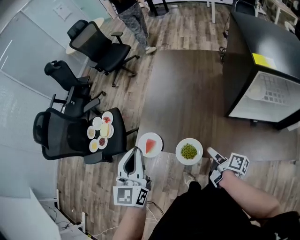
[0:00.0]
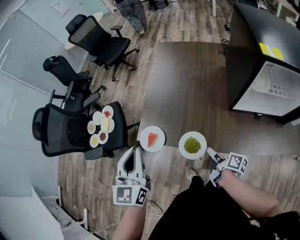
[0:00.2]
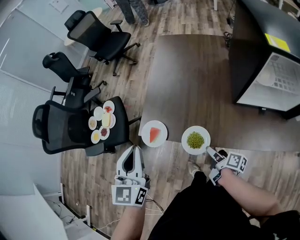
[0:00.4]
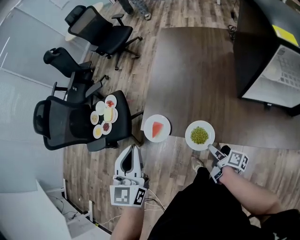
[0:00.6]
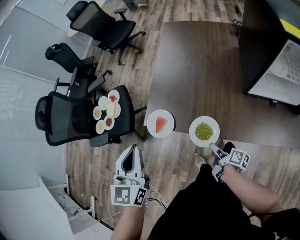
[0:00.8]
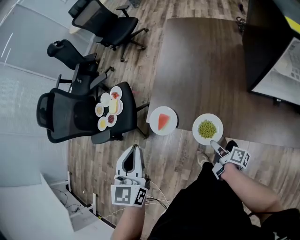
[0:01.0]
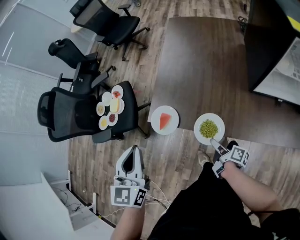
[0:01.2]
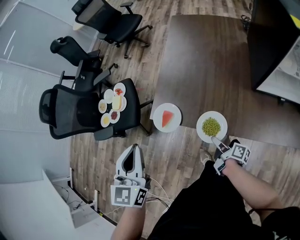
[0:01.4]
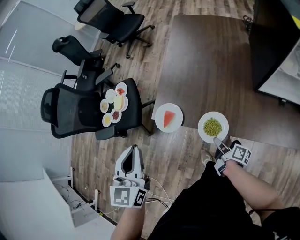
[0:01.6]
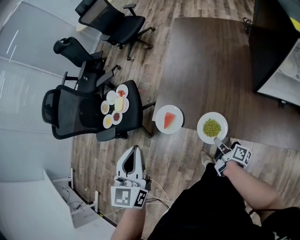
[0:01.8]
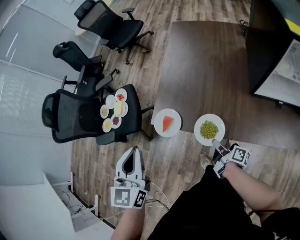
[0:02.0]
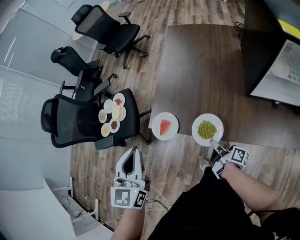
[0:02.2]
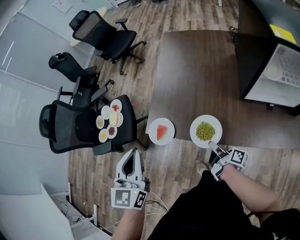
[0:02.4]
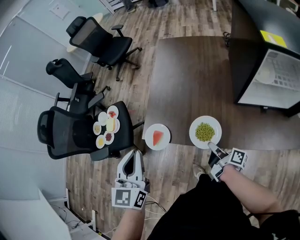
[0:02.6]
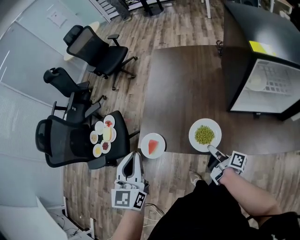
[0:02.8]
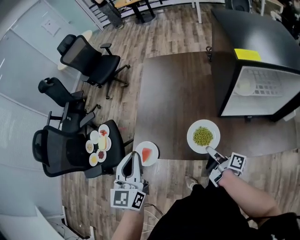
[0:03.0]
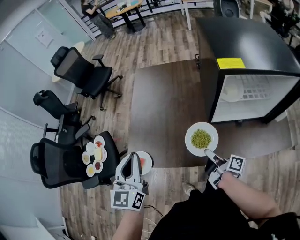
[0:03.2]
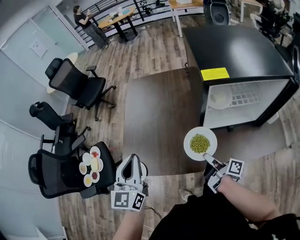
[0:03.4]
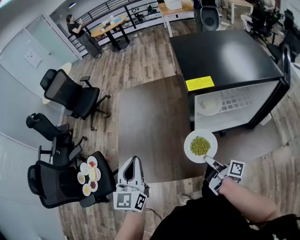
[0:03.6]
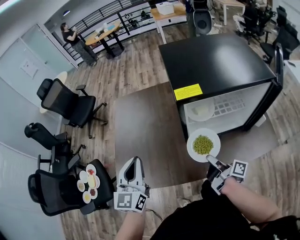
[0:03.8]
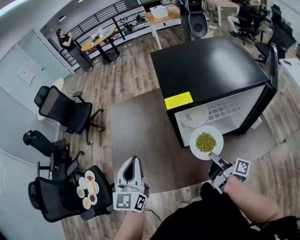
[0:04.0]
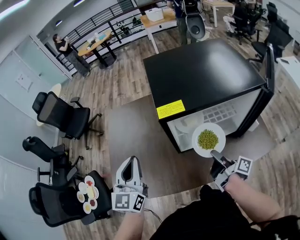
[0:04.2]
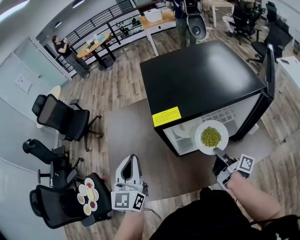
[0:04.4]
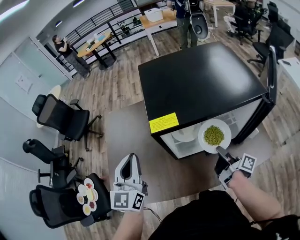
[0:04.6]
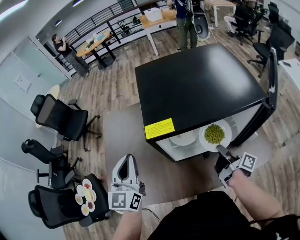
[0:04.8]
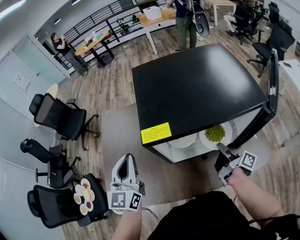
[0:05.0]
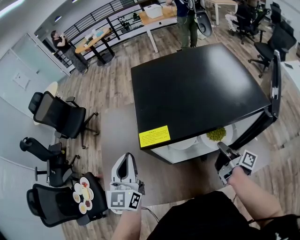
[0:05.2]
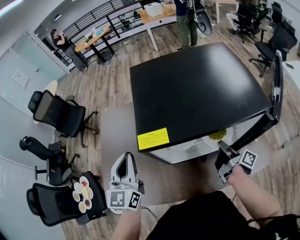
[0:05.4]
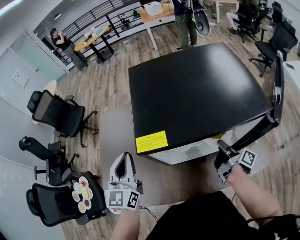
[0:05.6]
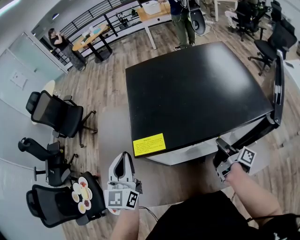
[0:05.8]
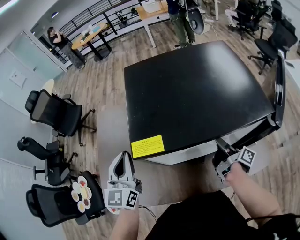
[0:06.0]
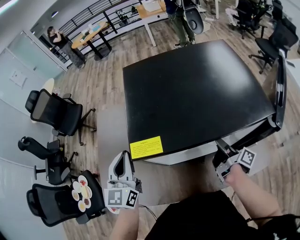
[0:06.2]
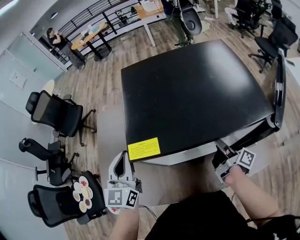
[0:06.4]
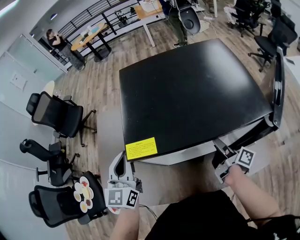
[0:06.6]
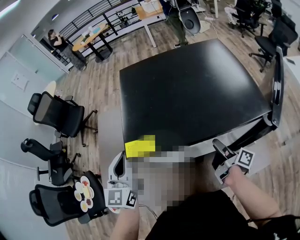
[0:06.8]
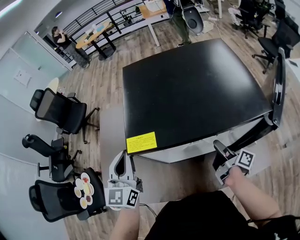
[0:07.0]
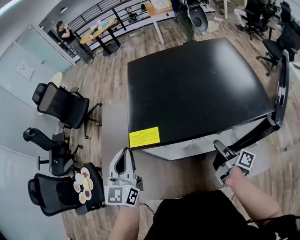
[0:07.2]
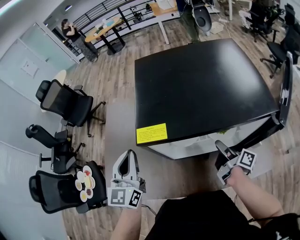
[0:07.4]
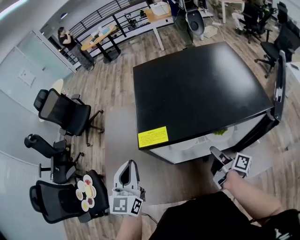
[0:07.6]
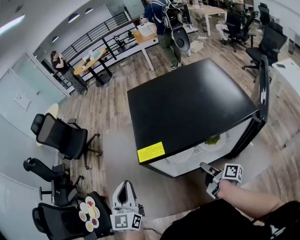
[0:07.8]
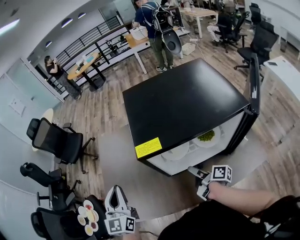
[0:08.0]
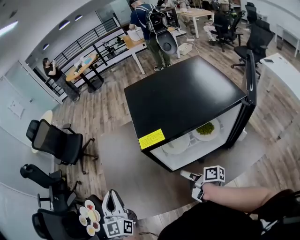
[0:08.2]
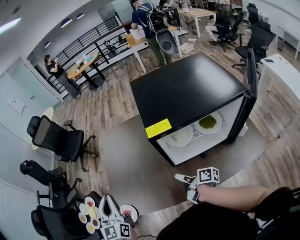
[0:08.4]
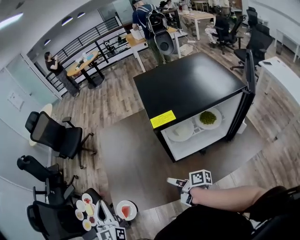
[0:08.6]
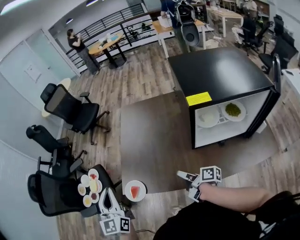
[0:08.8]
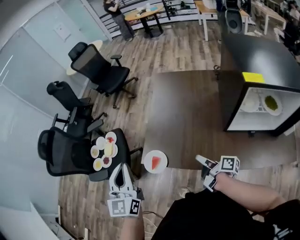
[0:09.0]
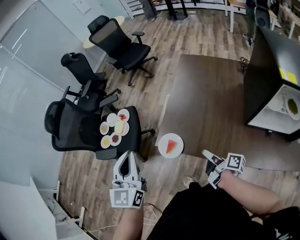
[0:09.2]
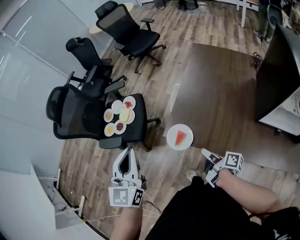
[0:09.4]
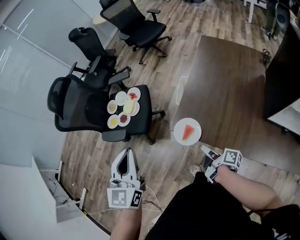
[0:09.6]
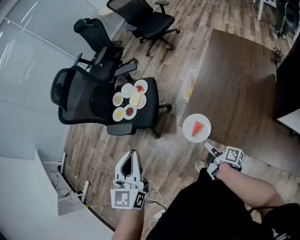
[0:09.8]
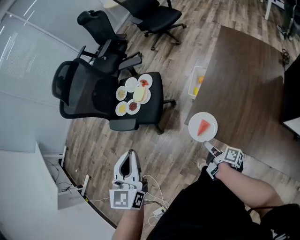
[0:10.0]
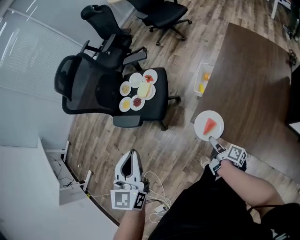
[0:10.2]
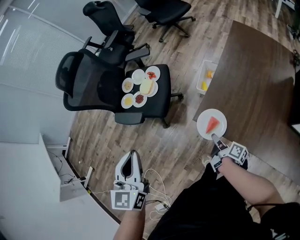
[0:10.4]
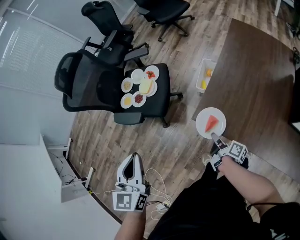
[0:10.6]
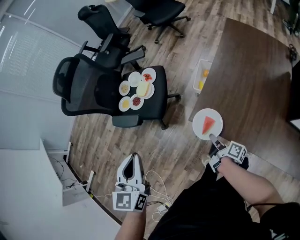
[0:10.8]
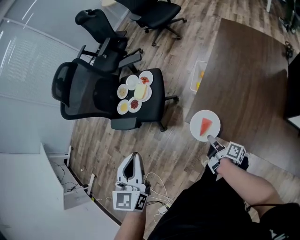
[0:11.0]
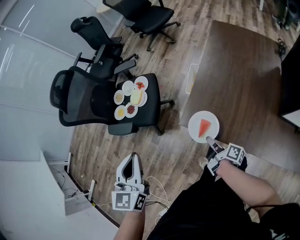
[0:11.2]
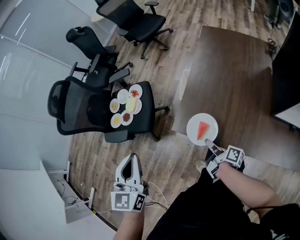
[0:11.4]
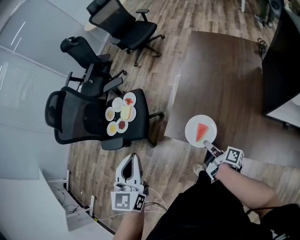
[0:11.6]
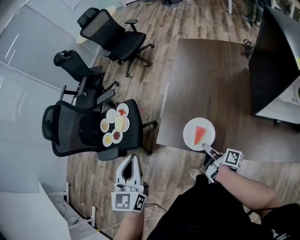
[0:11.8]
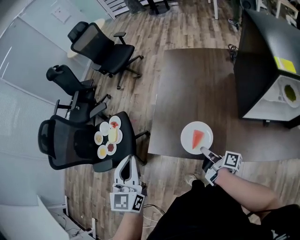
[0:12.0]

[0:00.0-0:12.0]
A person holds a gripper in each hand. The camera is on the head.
0:00.0 to 0:01.6: The left gripper changes place by approximately 10 cm.
0:01.6 to 0:03.0: The left gripper shifts by approximately 15 cm.
0:03.0 to 0:04.4: The left gripper moves about 30 cm, and changes its angle by roughly 20 degrees.
0:04.4 to 0:06.0: The left gripper changes place by about 10 cm.
0:07.6 to 0:09.0: The left gripper moves approximately 50 cm, and turns by some 30 degrees.
0:09.0 to 0:10.4: The left gripper moves roughly 25 cm, and turns by about 30 degrees.
0:10.4 to 0:12.0: The left gripper changes place by roughly 25 cm, and rotates some 20 degrees.

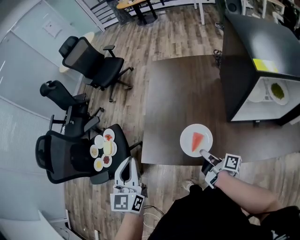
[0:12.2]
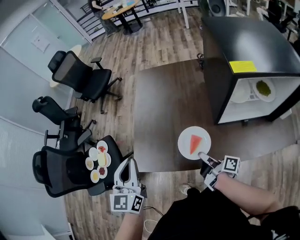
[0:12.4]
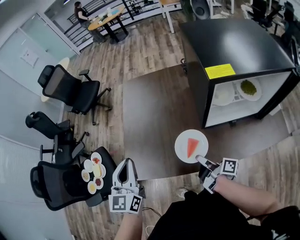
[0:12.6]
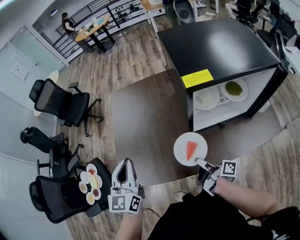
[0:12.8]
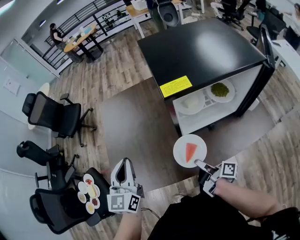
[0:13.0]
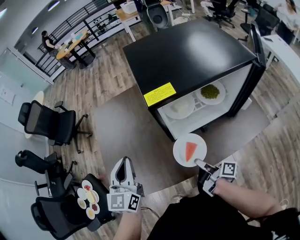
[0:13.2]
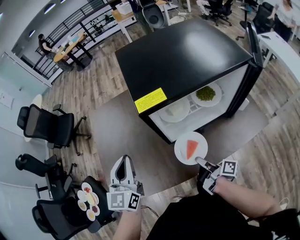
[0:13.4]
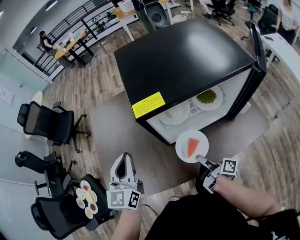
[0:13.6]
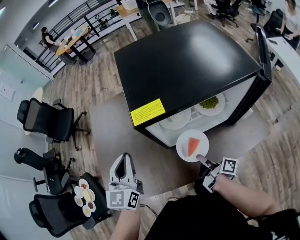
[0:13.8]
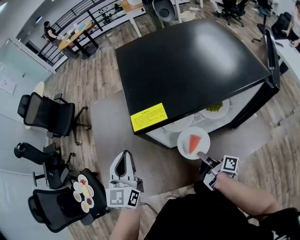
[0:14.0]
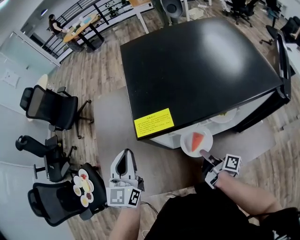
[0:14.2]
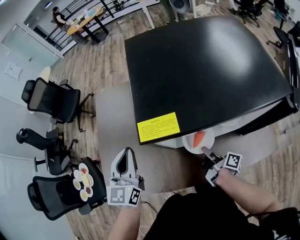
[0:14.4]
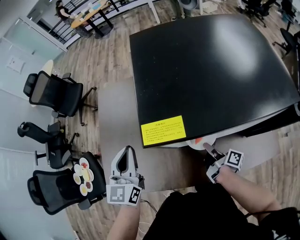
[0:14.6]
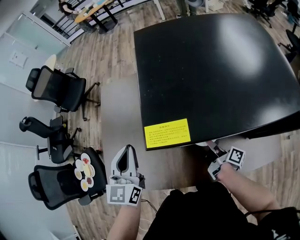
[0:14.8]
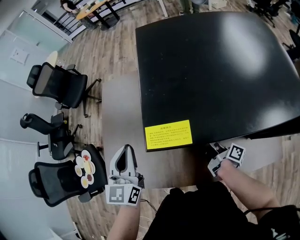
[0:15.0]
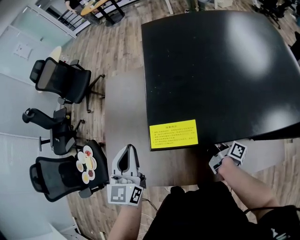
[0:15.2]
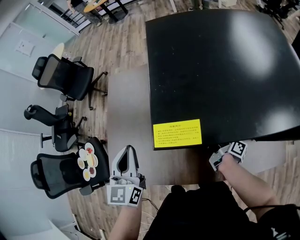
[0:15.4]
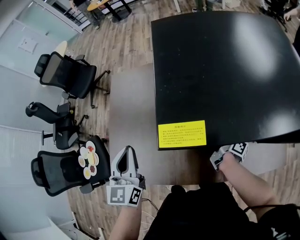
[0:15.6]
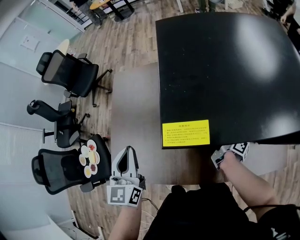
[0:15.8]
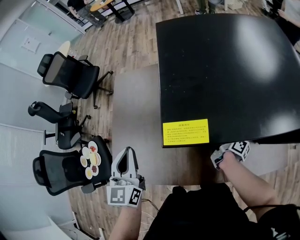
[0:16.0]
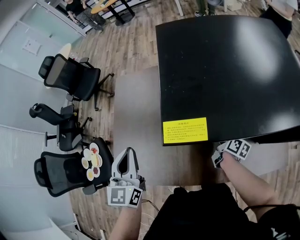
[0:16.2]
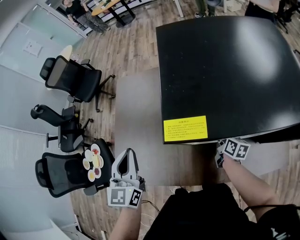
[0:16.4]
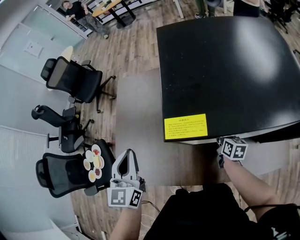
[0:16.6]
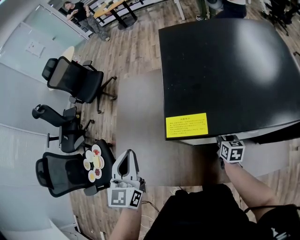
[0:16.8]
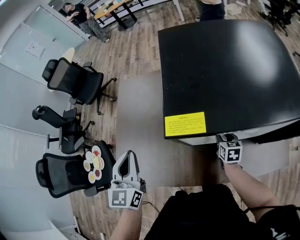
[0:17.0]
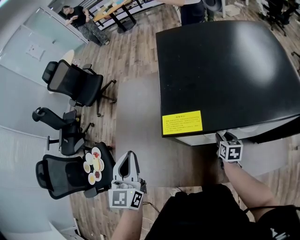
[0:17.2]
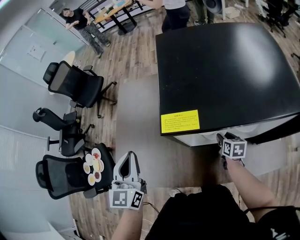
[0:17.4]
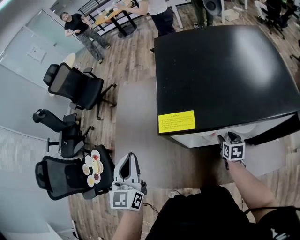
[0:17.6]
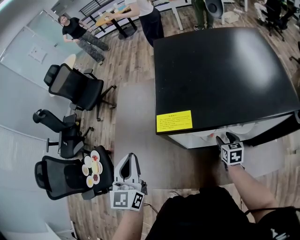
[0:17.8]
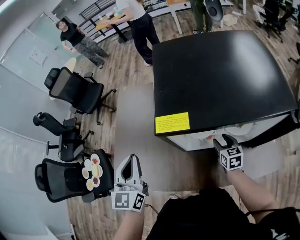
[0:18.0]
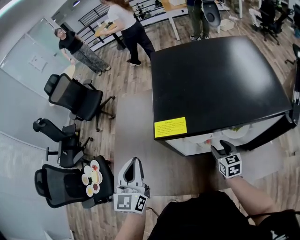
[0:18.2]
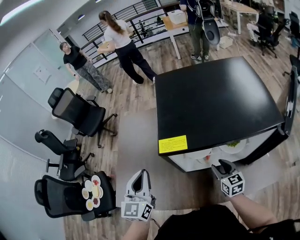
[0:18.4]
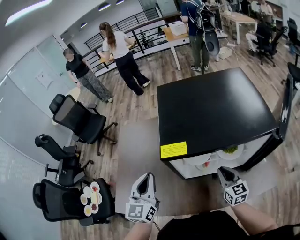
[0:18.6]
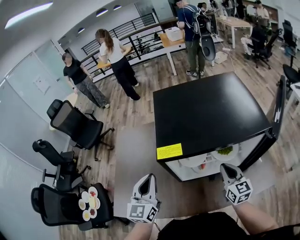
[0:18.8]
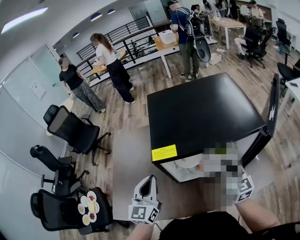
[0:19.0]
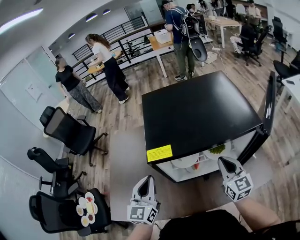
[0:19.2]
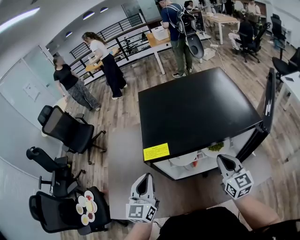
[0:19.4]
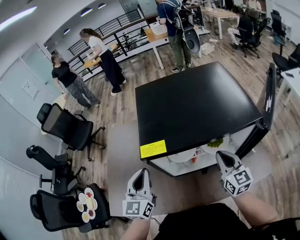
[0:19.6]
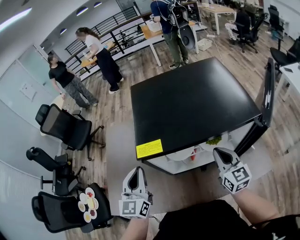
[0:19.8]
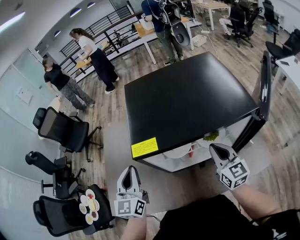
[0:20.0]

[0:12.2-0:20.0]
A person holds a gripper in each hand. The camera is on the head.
0:12.2 to 0:13.8: The left gripper moves approximately 40 cm, and rotates roughly 20 degrees.
0:13.8 to 0:15.4: The left gripper ends up some 5 cm from where it was.
0:16.8 to 0:18.4: The left gripper ends up some 5 cm from where it was.
0:18.4 to 0:20.0: The left gripper moves some 5 cm.

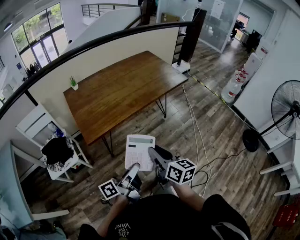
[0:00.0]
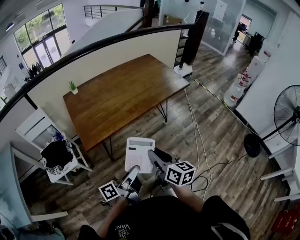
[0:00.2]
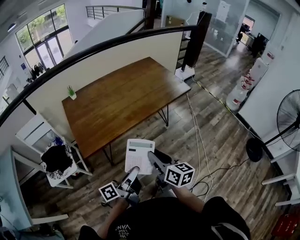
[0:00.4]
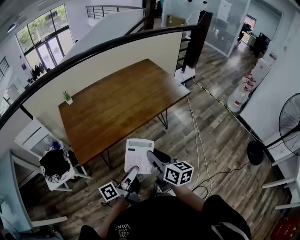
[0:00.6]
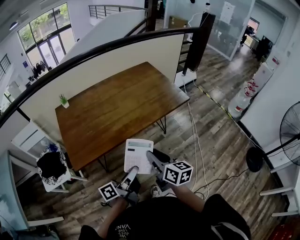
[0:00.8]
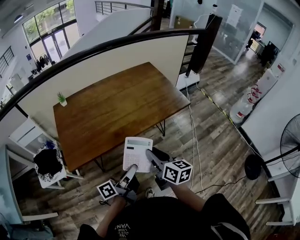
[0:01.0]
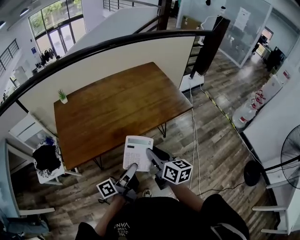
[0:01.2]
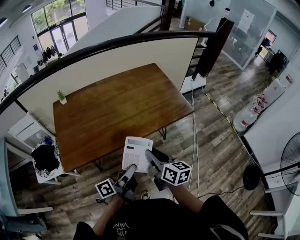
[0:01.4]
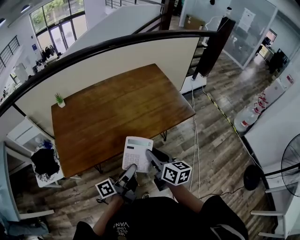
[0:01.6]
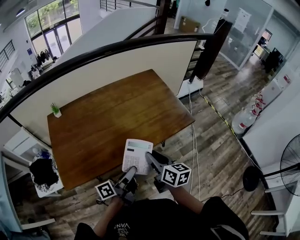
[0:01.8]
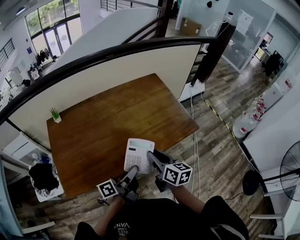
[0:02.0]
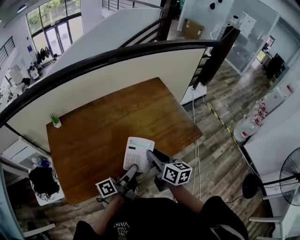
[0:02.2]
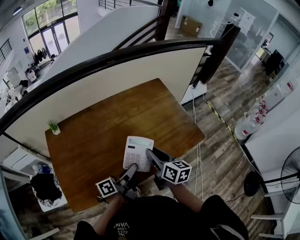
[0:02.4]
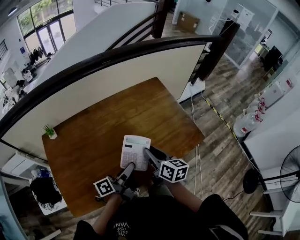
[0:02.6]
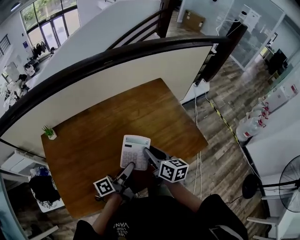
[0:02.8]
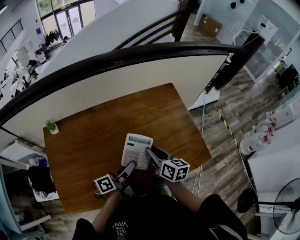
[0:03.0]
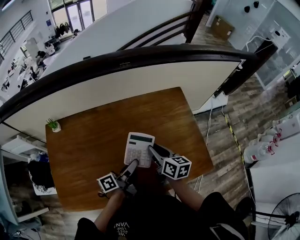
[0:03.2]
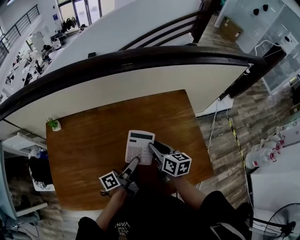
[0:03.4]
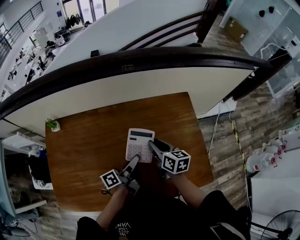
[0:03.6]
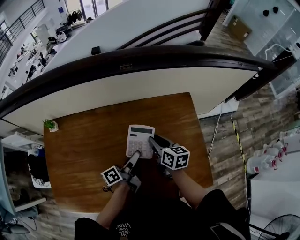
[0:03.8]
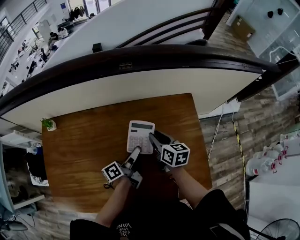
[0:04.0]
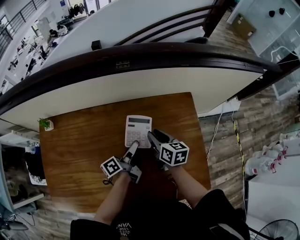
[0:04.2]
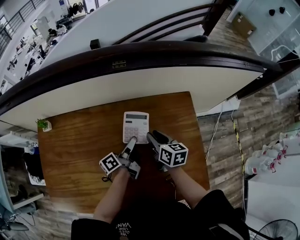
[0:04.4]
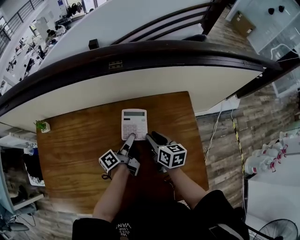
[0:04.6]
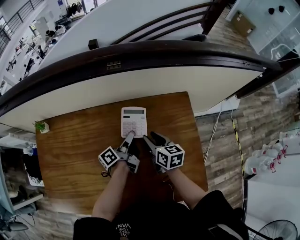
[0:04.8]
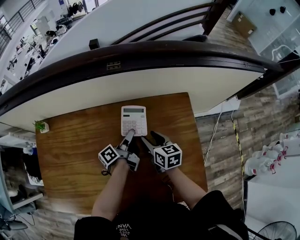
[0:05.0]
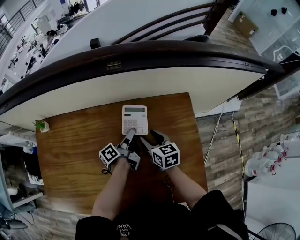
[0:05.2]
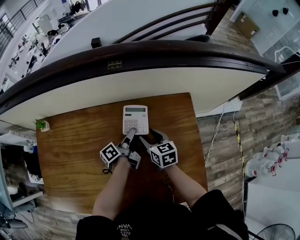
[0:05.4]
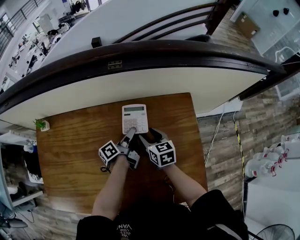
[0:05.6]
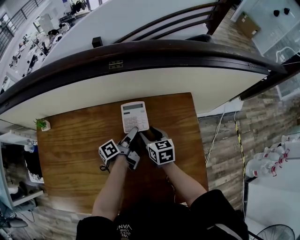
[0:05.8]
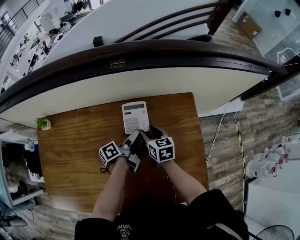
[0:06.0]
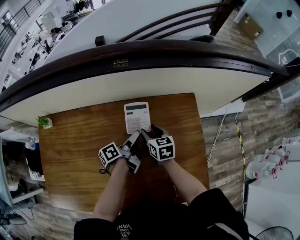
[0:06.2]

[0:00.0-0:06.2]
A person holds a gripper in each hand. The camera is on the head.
0:00.0 to 0:01.6: Both grippers move forward and to the right, about 35 cm.
0:01.6 to 0:03.2: Both grippers move forward, about 35 cm.
0:03.2 to 0:04.6: The left gripper moves forward, approximately 20 cm, and rotates some 20 degrees. The right gripper is displaced forward and downward by roughly 15 cm.
0:04.6 to 0:06.2: The right gripper ends up approximately 5 cm from where it was, and opens its fingers, while the left gripper opens.
